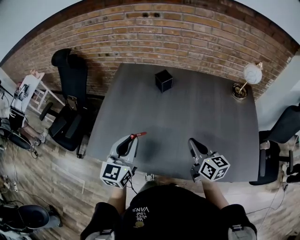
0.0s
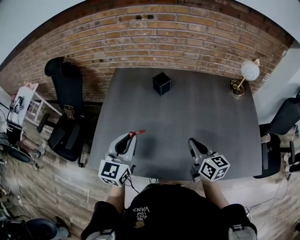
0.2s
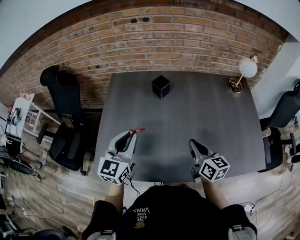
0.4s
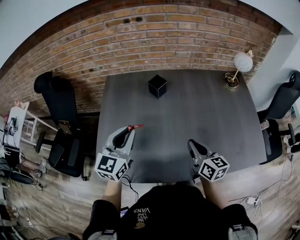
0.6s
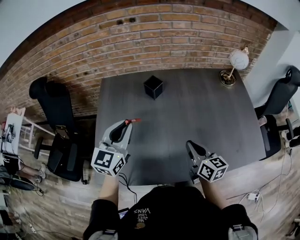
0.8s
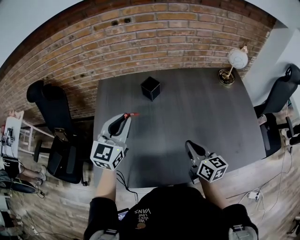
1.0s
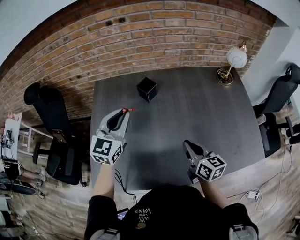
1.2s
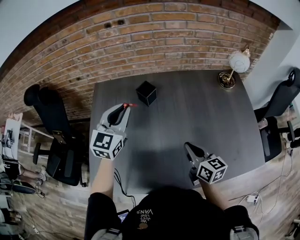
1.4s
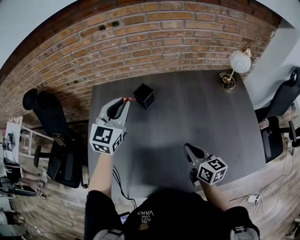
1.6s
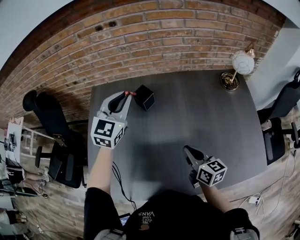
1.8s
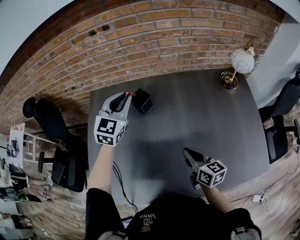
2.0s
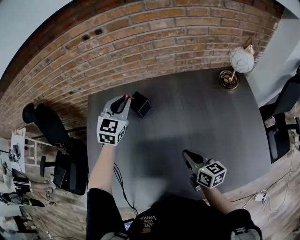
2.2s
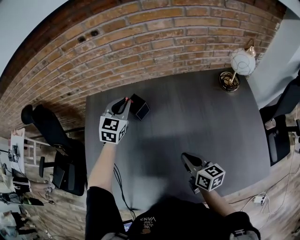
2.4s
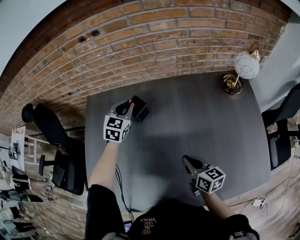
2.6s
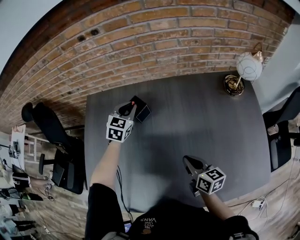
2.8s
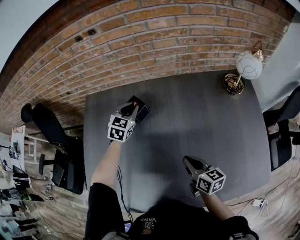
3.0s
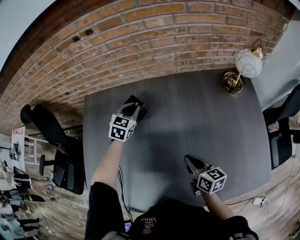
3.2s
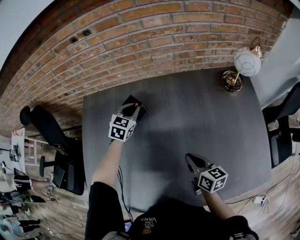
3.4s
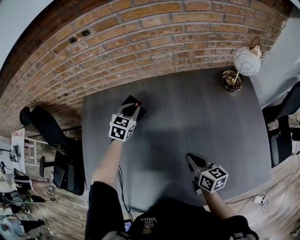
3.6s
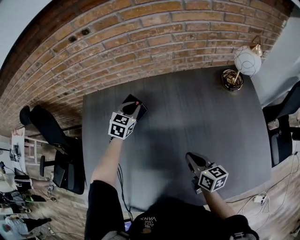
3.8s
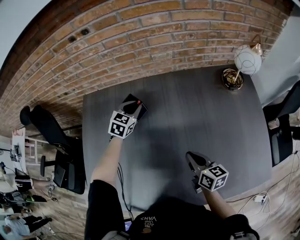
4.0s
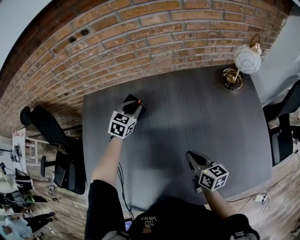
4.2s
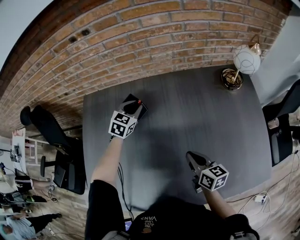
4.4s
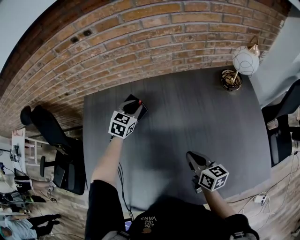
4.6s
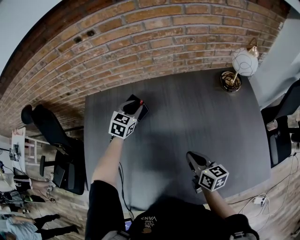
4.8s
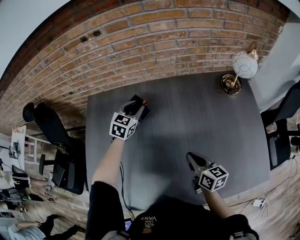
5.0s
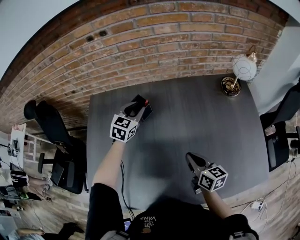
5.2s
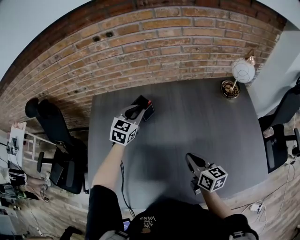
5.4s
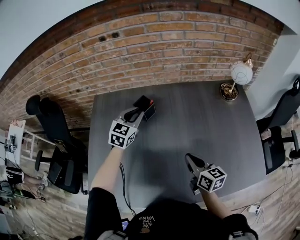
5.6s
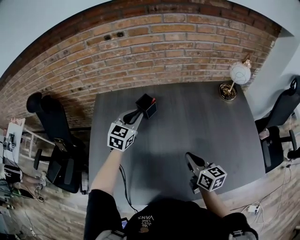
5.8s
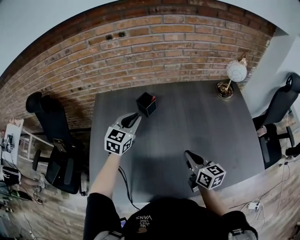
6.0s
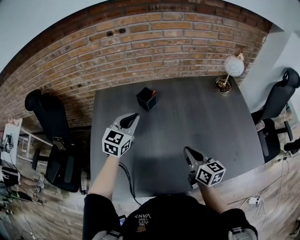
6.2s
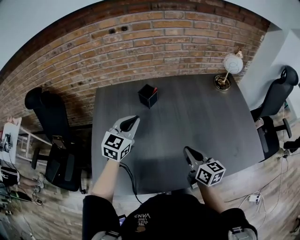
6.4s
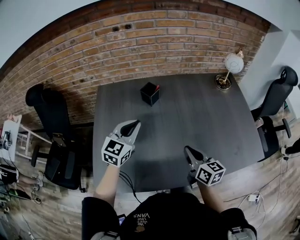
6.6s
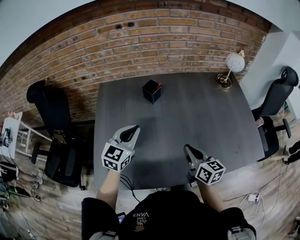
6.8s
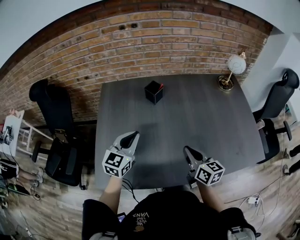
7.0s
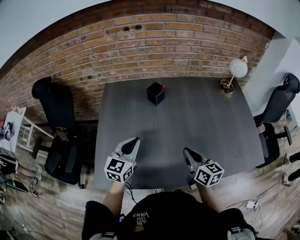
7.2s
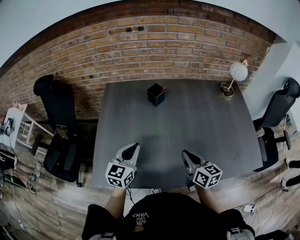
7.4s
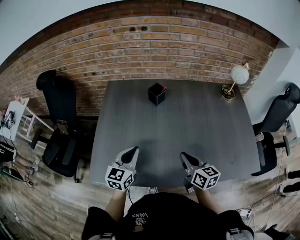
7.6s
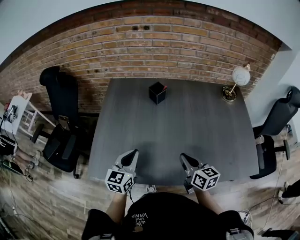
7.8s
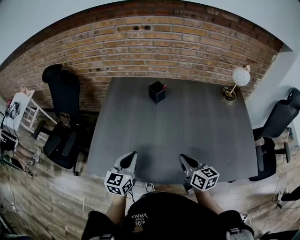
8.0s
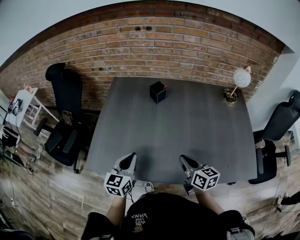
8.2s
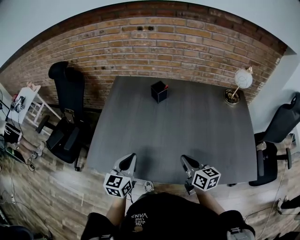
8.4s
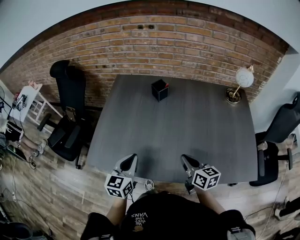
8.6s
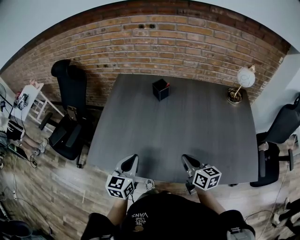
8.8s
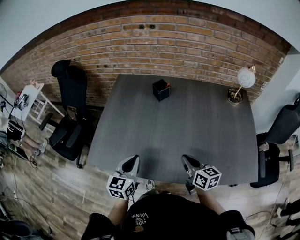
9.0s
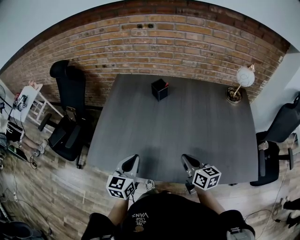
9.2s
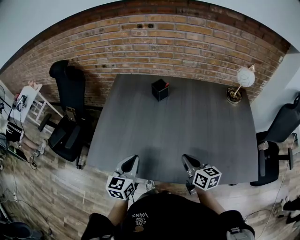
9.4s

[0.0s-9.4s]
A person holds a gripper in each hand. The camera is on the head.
0.0s to 1.6s: The right gripper heads forward, covering approximately 10 cm. The left gripper goes approximately 30 cm forward, and rotates some 30 degrees.
1.6s to 3.2s: The right gripper shifts approximately 10 cm downward, forward and to the right, while the left gripper goes approximately 25 cm downward and forward, and rotates some 30 degrees.
3.2s to 4.8s: The grippers move only a little.
4.8s to 6.2s: The left gripper travels backward and upward by approximately 20 cm; the right gripper goes roughly 15 cm backward, to the left and upward.
6.2s to 7.8s: The right gripper travels backward by roughly 10 cm. The left gripper shifts approximately 25 cm backward, and turns by approximately 20 degrees.
7.8s to 9.4s: The left gripper travels backward by about 5 cm.

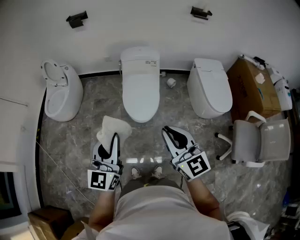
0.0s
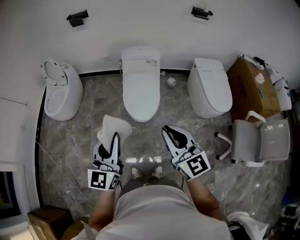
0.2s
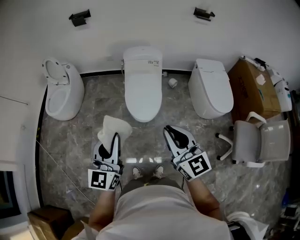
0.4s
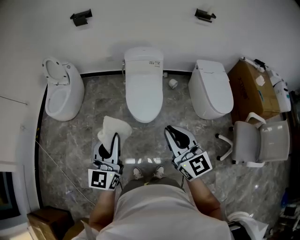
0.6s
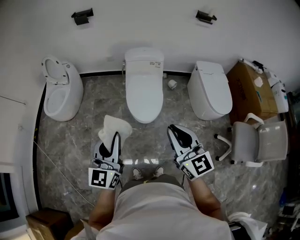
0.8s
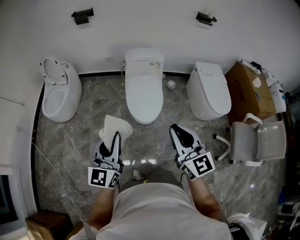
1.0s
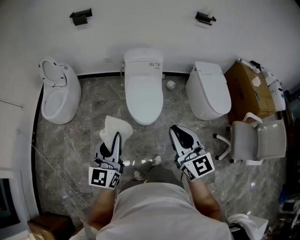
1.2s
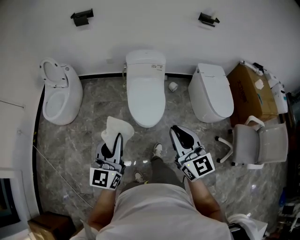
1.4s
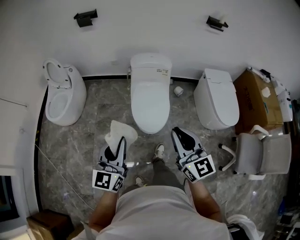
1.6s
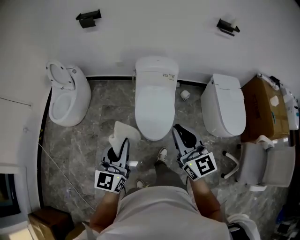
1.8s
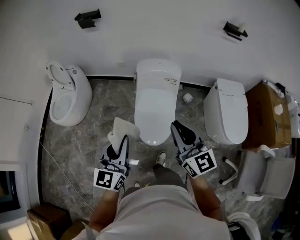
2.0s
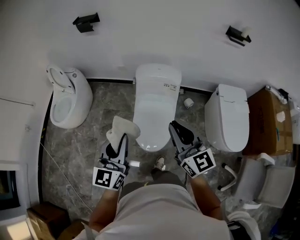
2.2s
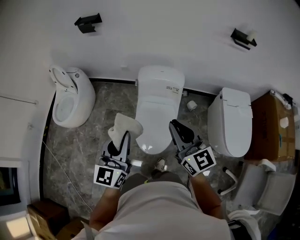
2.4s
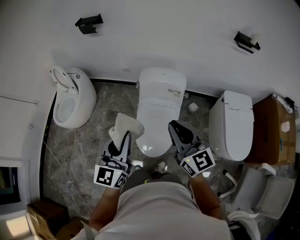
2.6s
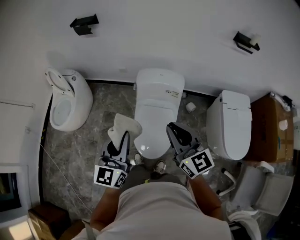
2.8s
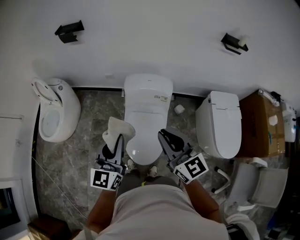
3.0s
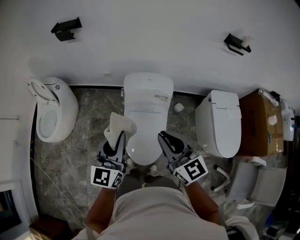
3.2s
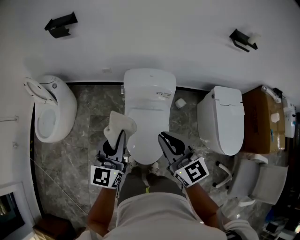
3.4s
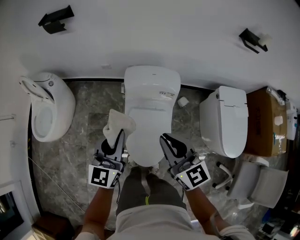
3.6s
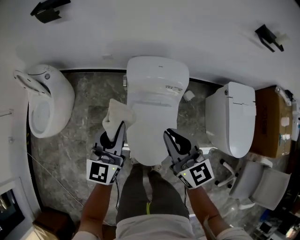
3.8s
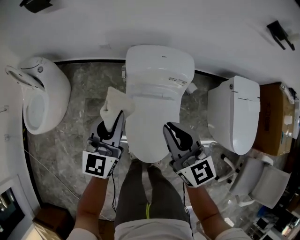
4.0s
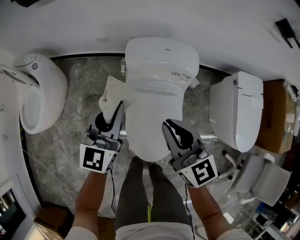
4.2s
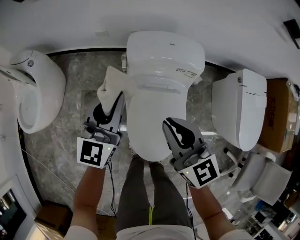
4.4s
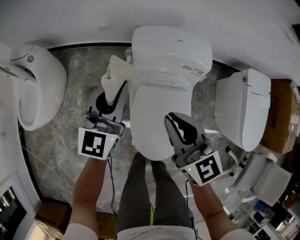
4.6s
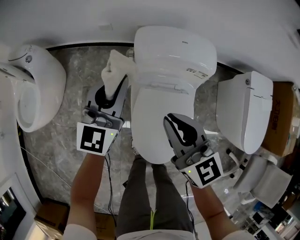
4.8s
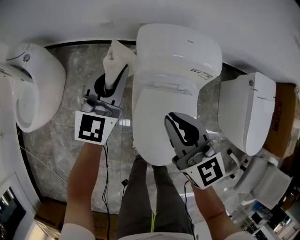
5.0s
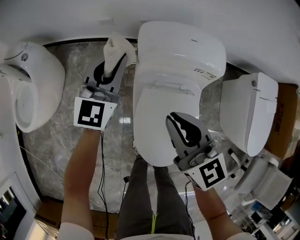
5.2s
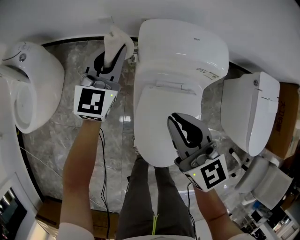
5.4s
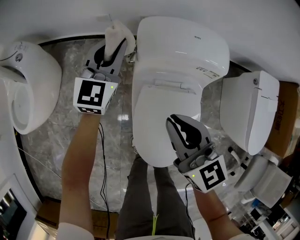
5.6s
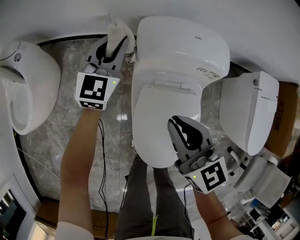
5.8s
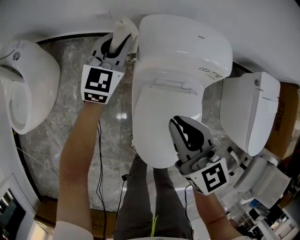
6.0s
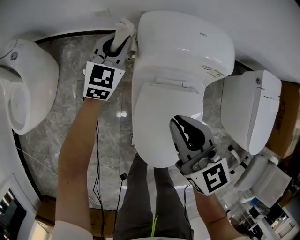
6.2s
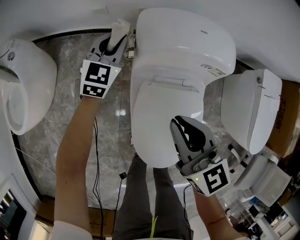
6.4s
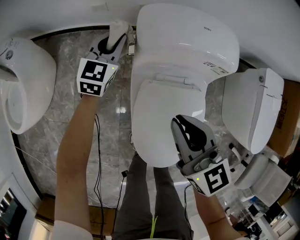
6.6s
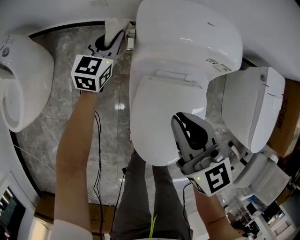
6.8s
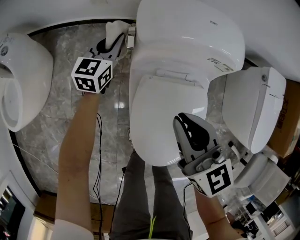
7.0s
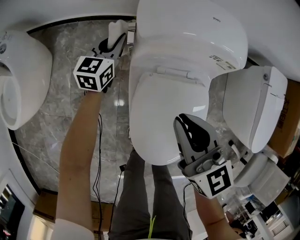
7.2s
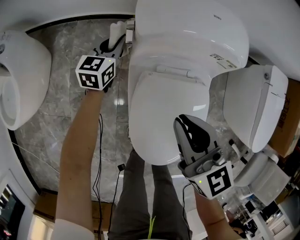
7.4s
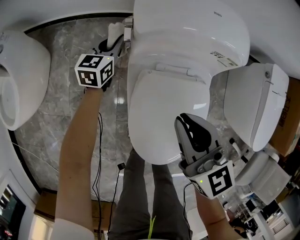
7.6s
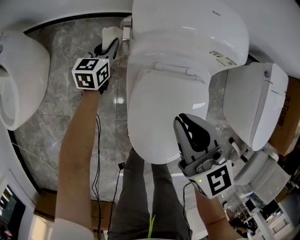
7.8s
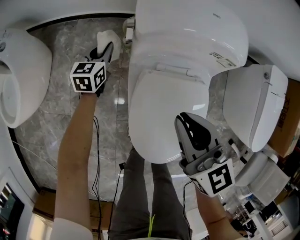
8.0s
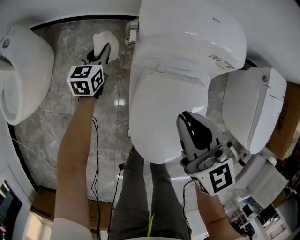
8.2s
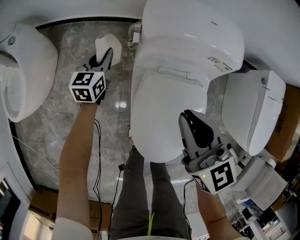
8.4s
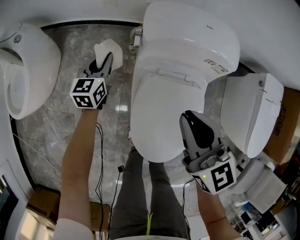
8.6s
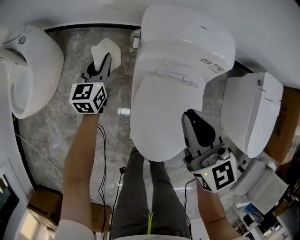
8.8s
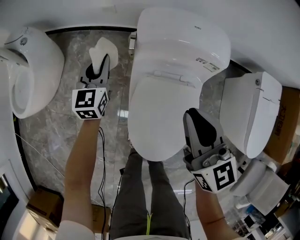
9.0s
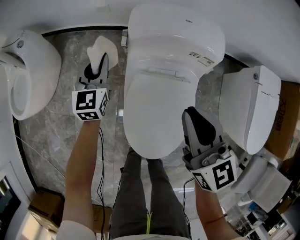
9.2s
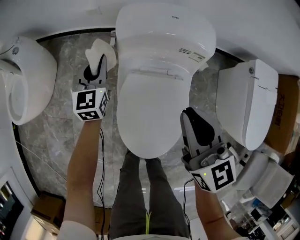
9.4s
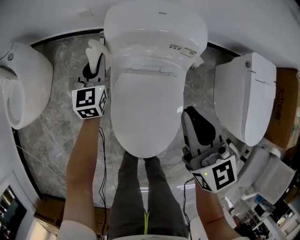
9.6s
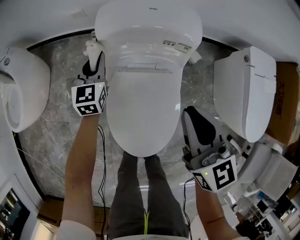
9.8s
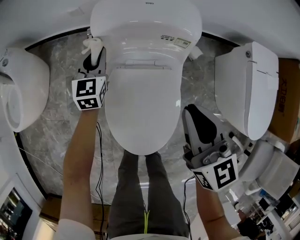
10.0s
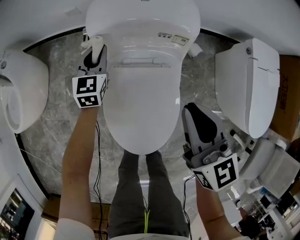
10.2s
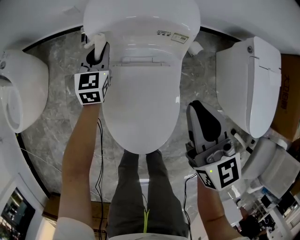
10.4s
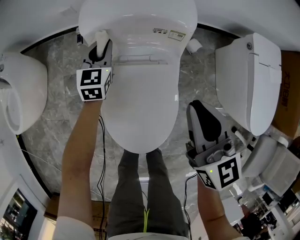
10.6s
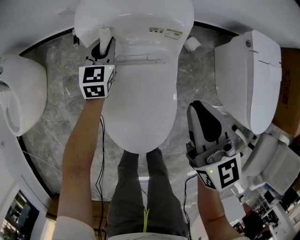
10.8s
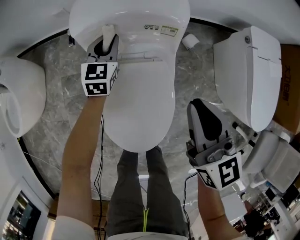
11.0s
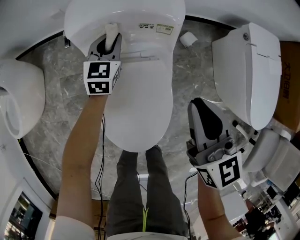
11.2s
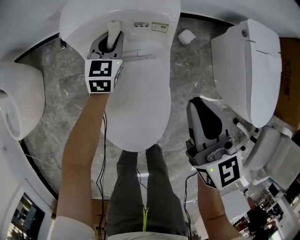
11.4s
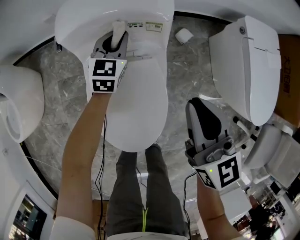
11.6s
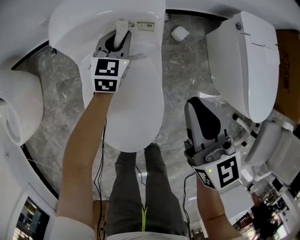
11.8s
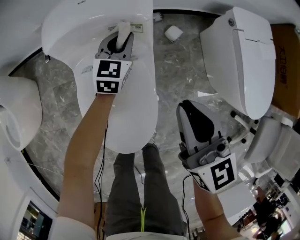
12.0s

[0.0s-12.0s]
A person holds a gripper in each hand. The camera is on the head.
0.0s to 1.6s: Both grippers move forward and to the left, roughly 15 cm.
1.6s to 3.0s: The two grippers go roughly 35 cm forward.
3.0s to 4.4s: The left gripper is displaced forward and downward by approximately 35 cm, while the right gripper is displaced downward and forward by some 30 cm.
4.4s to 6.0s: The left gripper moves forward and downward, roughly 30 cm. The right gripper travels downward and forward by roughly 15 cm.
6.0s to 7.6s: The right gripper goes some 10 cm downward. Meanwhile the left gripper heads downward, covering roughly 20 cm, and rotates approximately 30 degrees.
7.6s to 9.0s: The right gripper heads upward, covering about 10 cm, while the left gripper moves upward and backward, about 20 cm, and rotates some 20 degrees.
9.0s to 10.4s: Both grippers travel together to the right, about 15 cm.
10.4s to 12.0s: The right gripper moves to the right, roughly 10 cm. Meanwhile the left gripper is displaced to the right by approximately 25 cm.

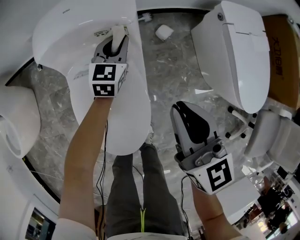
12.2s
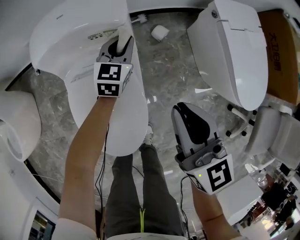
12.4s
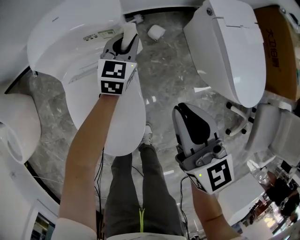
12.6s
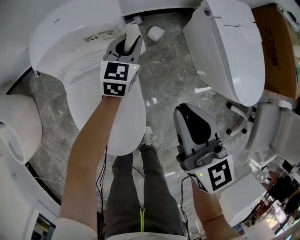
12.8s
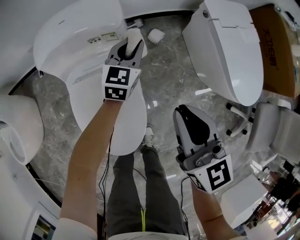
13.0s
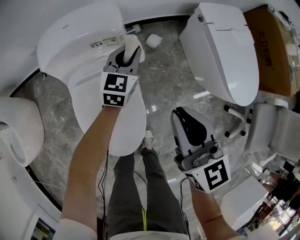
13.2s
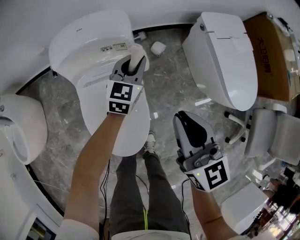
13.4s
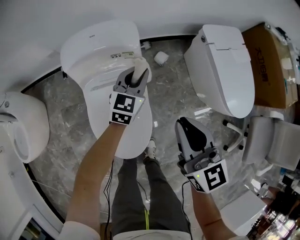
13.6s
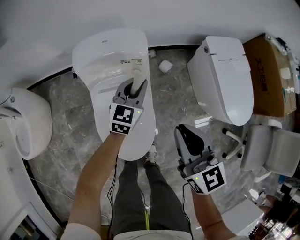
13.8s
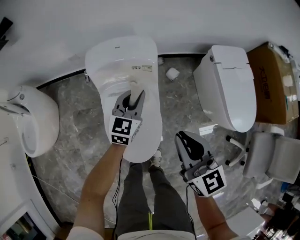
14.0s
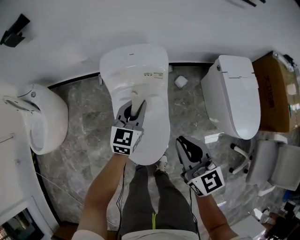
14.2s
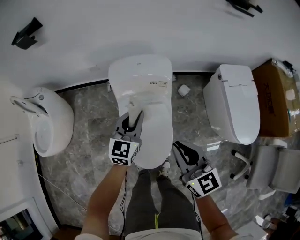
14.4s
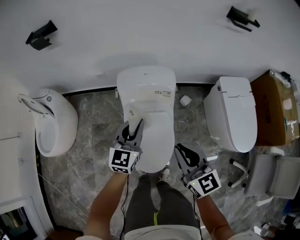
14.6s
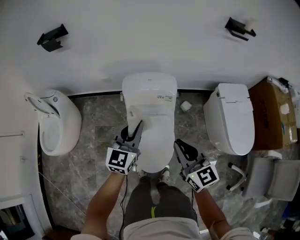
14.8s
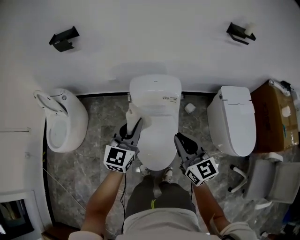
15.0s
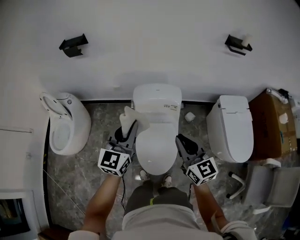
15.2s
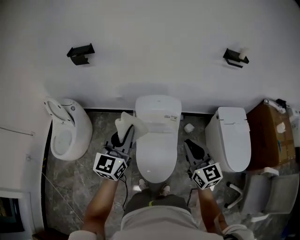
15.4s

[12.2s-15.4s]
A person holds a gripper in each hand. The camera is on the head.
12.2s to 13.8s: The two grippers go roughly 20 cm upward and backward.
13.8s to 15.4s: The left gripper goes about 50 cm upward, to the left and backward, and turns by about 30 degrees, while the right gripper is displaced upward by some 25 cm.
